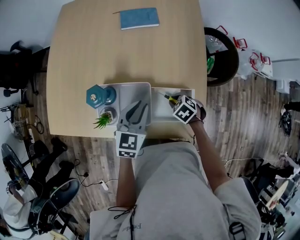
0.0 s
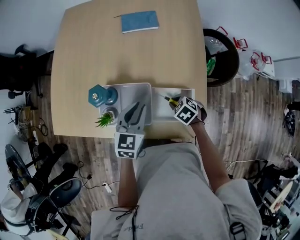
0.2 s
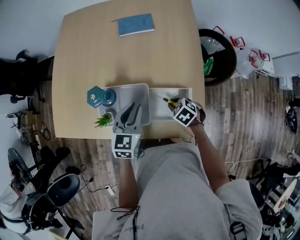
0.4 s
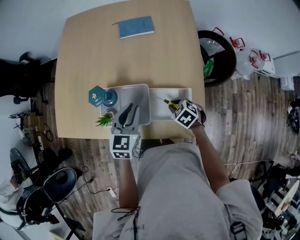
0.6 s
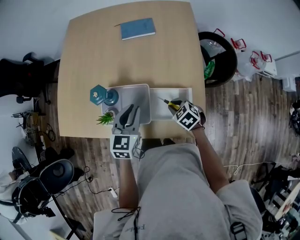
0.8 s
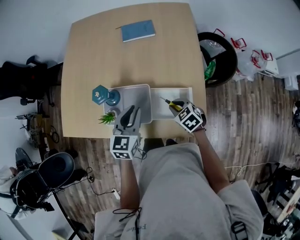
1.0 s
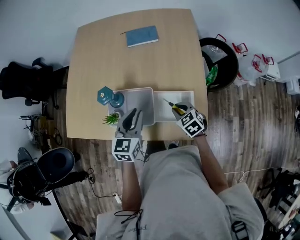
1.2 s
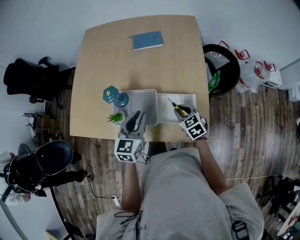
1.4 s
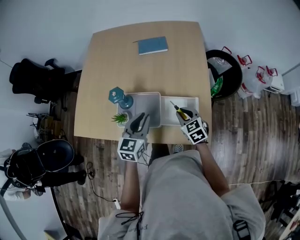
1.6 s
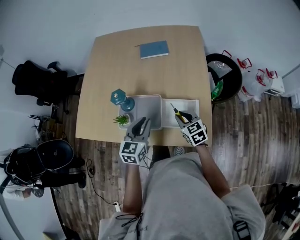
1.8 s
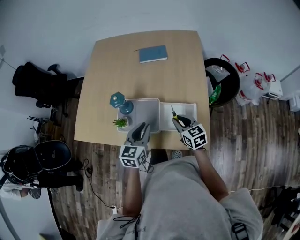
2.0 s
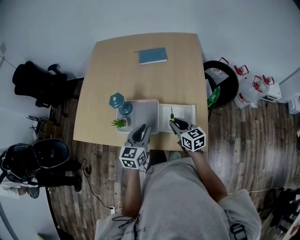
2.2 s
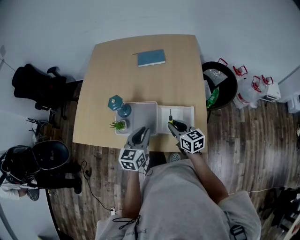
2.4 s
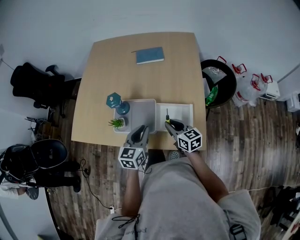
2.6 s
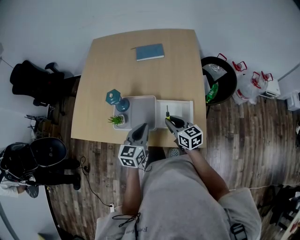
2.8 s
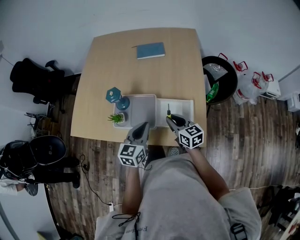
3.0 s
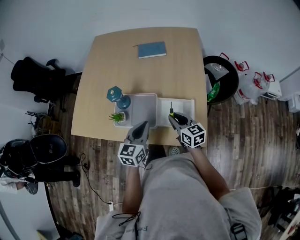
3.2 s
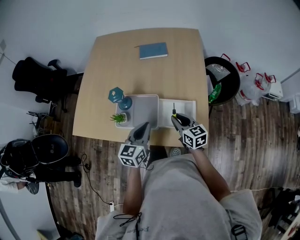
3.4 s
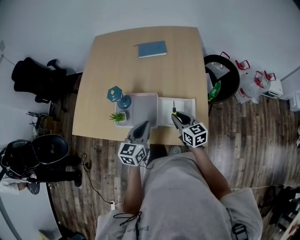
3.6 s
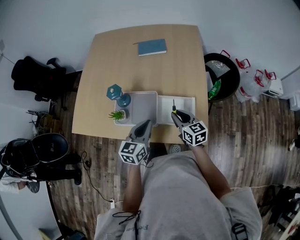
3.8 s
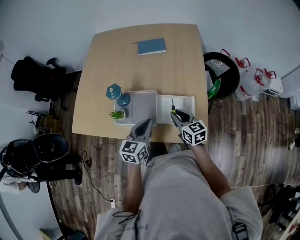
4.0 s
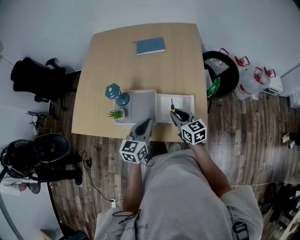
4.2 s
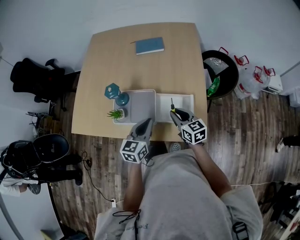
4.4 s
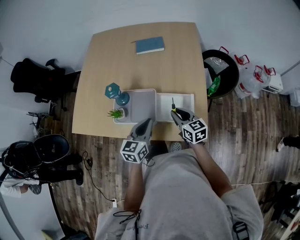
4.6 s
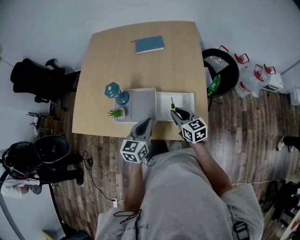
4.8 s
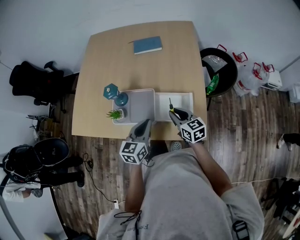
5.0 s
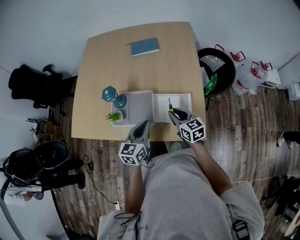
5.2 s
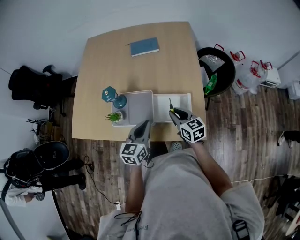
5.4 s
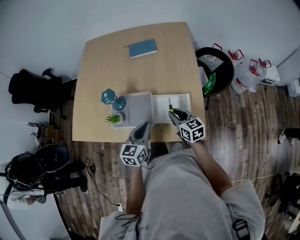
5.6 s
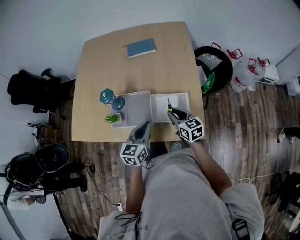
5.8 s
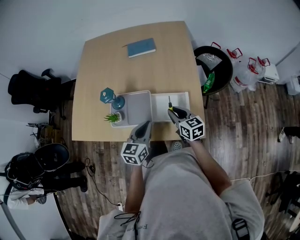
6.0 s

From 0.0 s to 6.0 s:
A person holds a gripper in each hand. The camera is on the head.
From 0.0 s to 1.6 s: The right gripper moves upward, about 10 cm, and tilts its fingers approximately 30 degrees upward. The left gripper travels upward and backward by roughly 10 cm.
From 1.6 s to 3.0 s: The right gripper changes its angle by some 30 degrees.
From 3.0 s to 6.0 s: There are only small adjustments of the grippers.

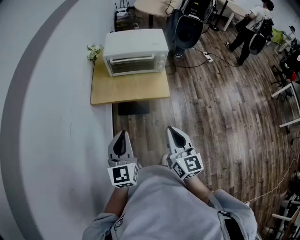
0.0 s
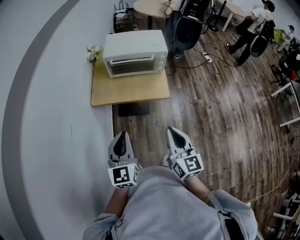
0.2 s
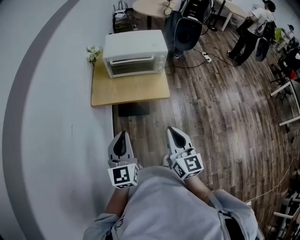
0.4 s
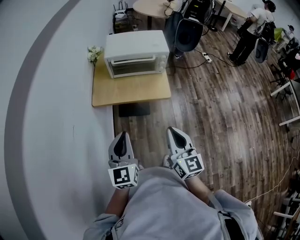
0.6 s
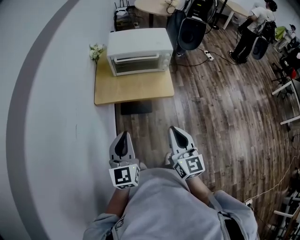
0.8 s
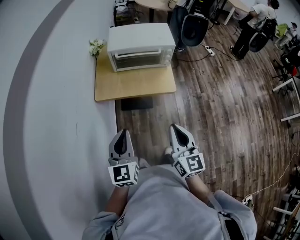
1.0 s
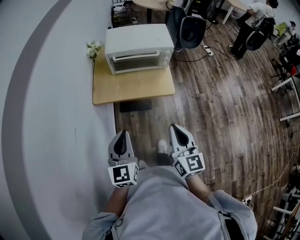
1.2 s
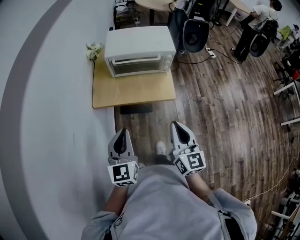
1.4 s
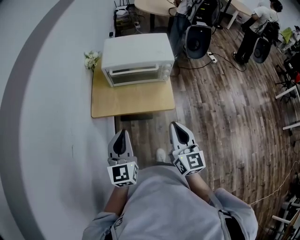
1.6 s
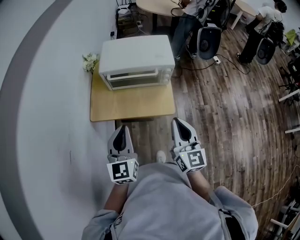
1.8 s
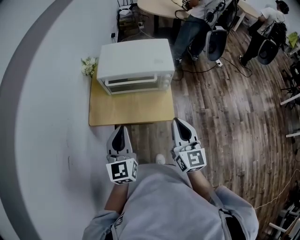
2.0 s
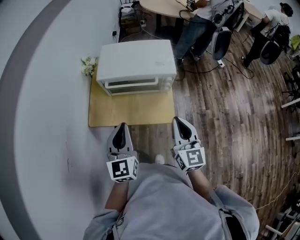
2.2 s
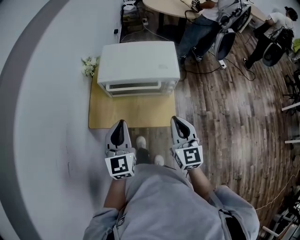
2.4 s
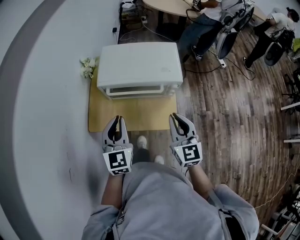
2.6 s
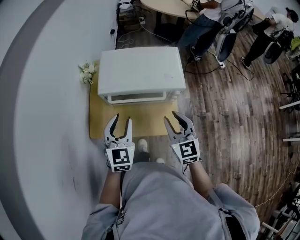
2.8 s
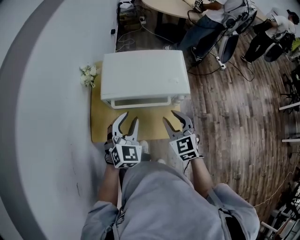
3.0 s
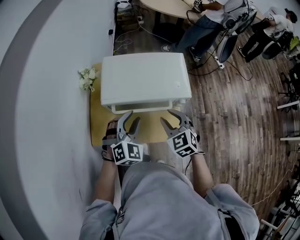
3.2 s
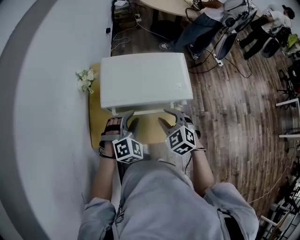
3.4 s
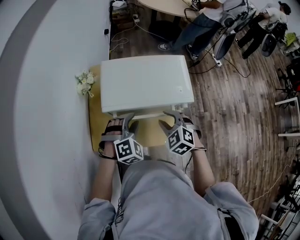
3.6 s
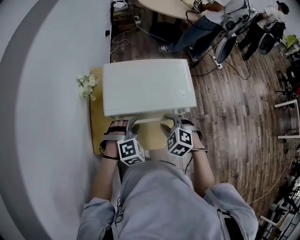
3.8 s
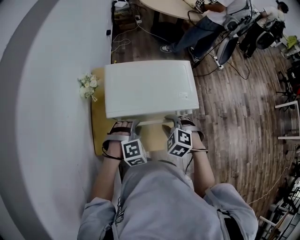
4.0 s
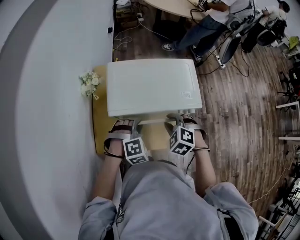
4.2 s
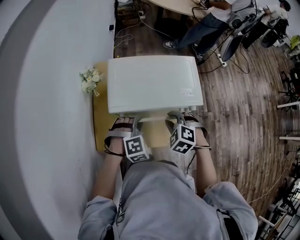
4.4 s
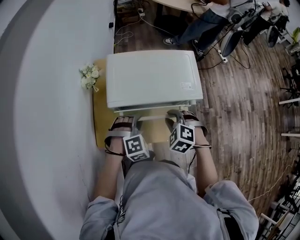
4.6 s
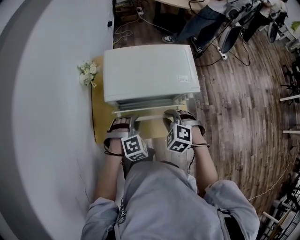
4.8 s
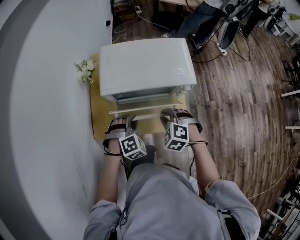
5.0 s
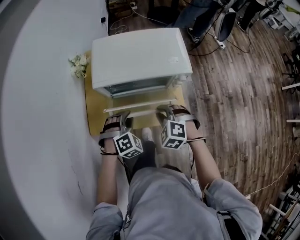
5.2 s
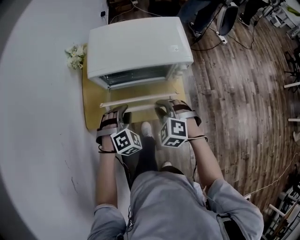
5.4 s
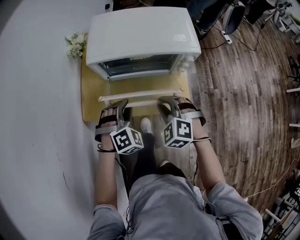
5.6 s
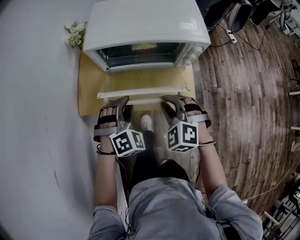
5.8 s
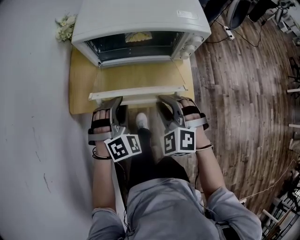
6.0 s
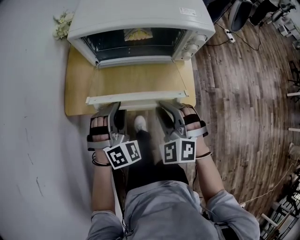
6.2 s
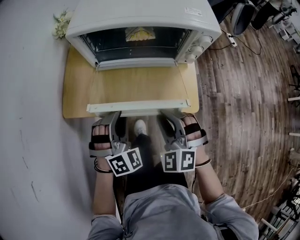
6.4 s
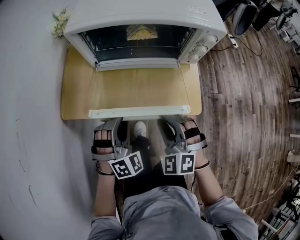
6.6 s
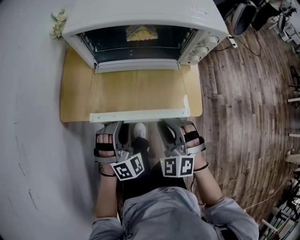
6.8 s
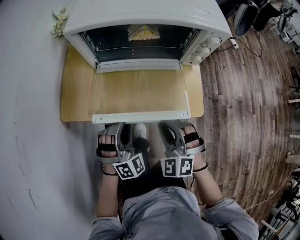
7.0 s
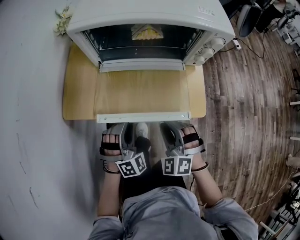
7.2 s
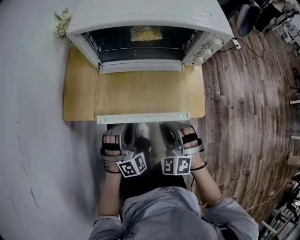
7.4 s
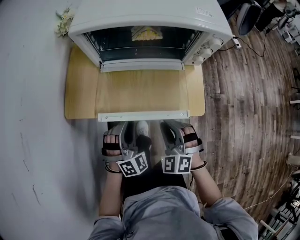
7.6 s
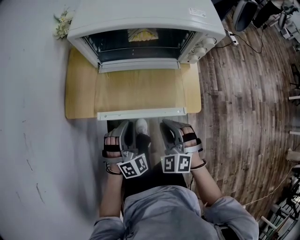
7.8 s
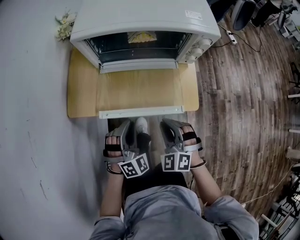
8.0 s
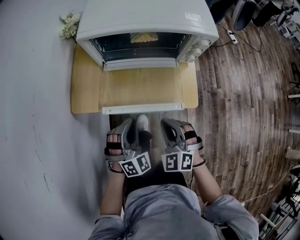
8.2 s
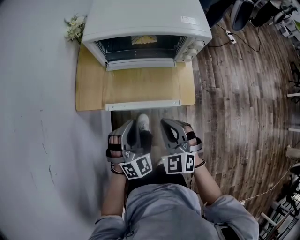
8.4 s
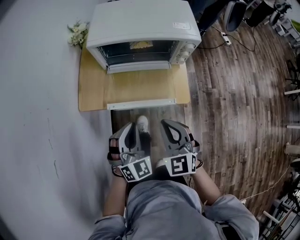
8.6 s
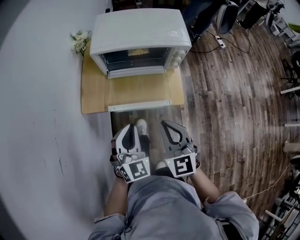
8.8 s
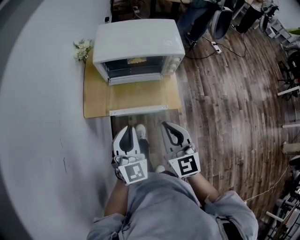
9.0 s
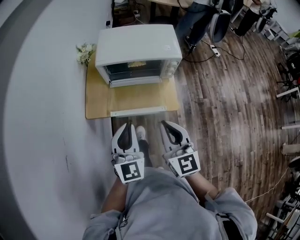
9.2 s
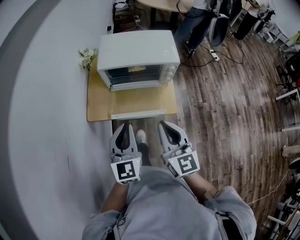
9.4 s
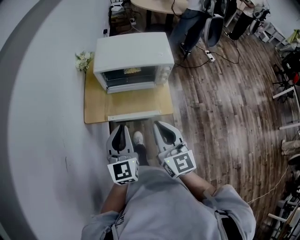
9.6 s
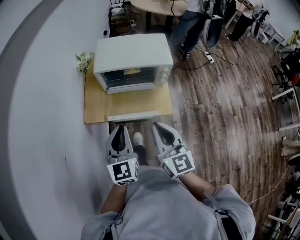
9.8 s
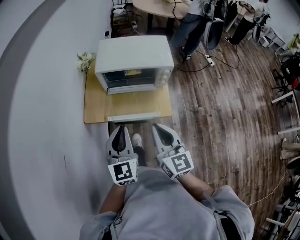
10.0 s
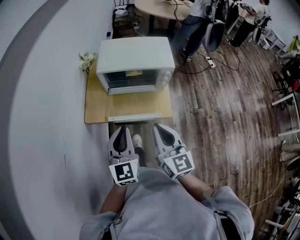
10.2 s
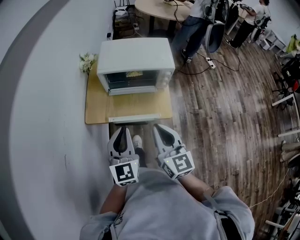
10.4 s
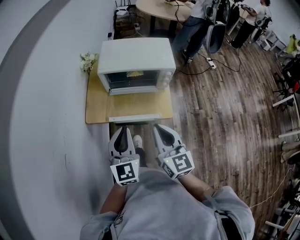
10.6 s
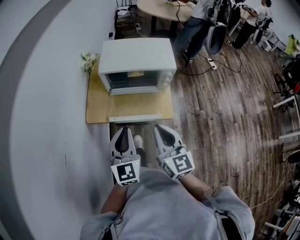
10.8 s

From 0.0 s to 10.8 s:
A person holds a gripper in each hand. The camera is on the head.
From 0.0 s to 1.6 s: Both grippers travel together forward, about 10 cm.
From 1.6 s to 3.0 s: The grippers both shift forward by approximately 25 cm. The right gripper changes its angle by about 40 degrees, and opens up; the left gripper rotates about 40 degrees, and opens its fingers.
From 3.0 s to 4.6 s: Both grippers travel together downward, approximately 10 cm. The left gripper swivels about 50 degrees. Meanwhile the right gripper points its fingers roughly 30 degrees further downward.
From 4.6 s to 6.2 s: Both grippers move backward and downward, roughly 15 cm. The left gripper changes its angle by some 30 degrees. The right gripper swivels roughly 30 degrees.
From 6.2 s to 7.8 s: Both grippers travel together downward, about 10 cm.
From 7.8 s to 9.2 s: The grippers both shift upward by about 30 cm. The right gripper rolls clockwise, seen from behind, by about 50 degrees. The left gripper rolls counterclockwise, seen from behind, by approximately 50 degrees.
From 9.2 s to 10.8 s: The grippers stay close to where they were, moving slightly.

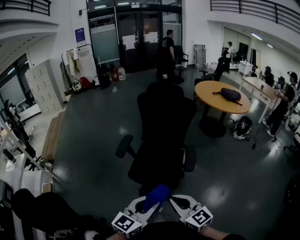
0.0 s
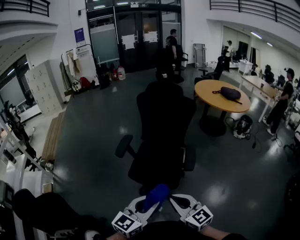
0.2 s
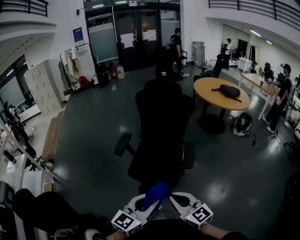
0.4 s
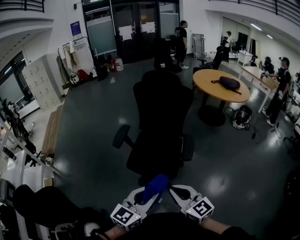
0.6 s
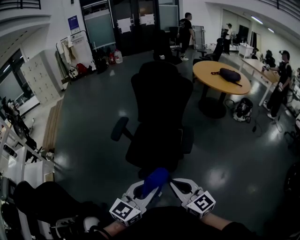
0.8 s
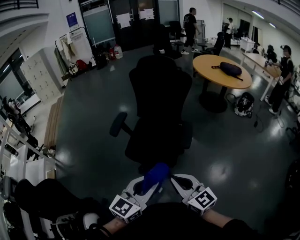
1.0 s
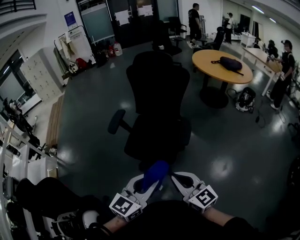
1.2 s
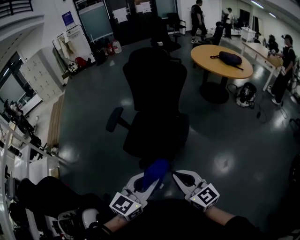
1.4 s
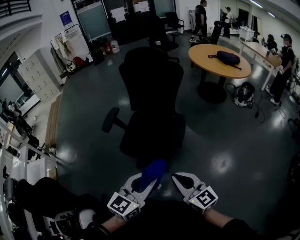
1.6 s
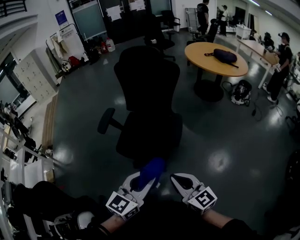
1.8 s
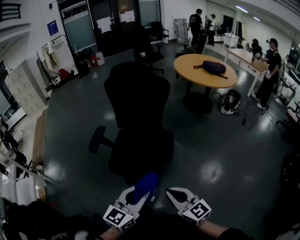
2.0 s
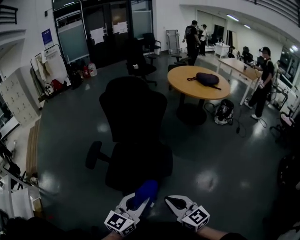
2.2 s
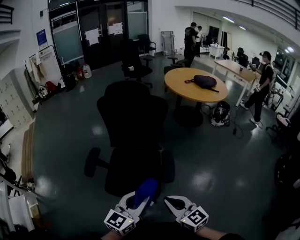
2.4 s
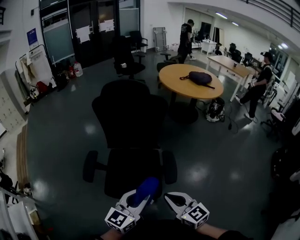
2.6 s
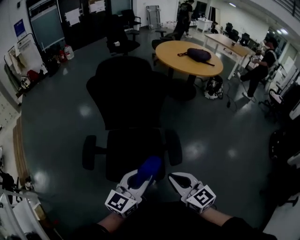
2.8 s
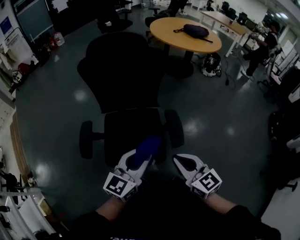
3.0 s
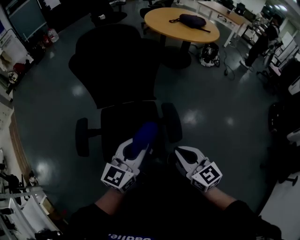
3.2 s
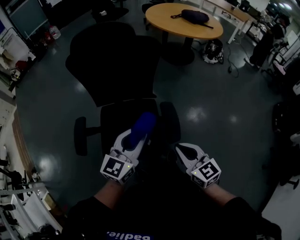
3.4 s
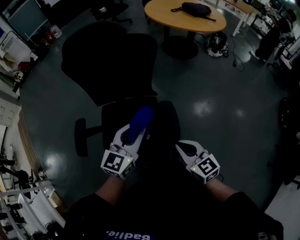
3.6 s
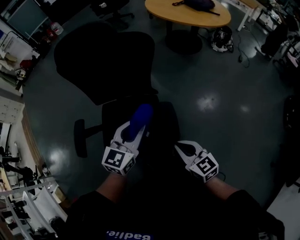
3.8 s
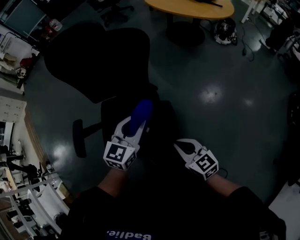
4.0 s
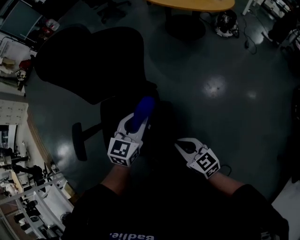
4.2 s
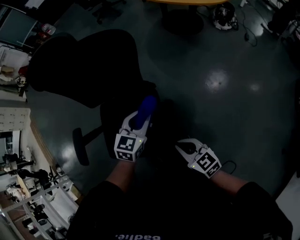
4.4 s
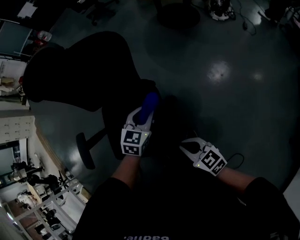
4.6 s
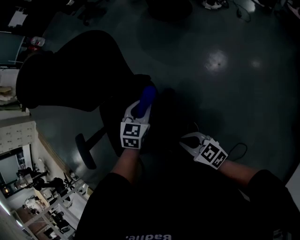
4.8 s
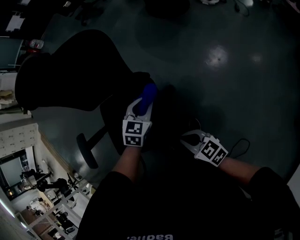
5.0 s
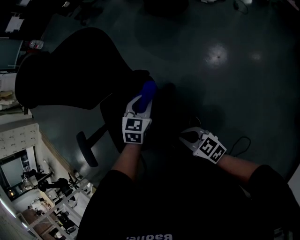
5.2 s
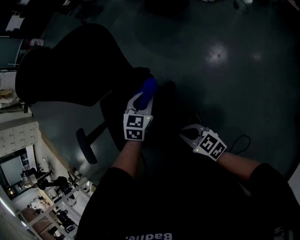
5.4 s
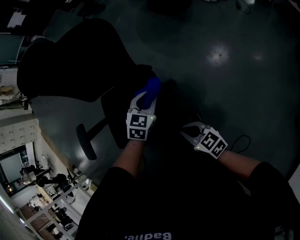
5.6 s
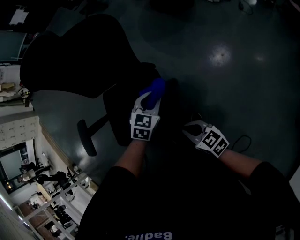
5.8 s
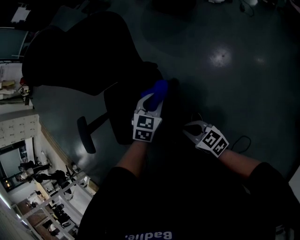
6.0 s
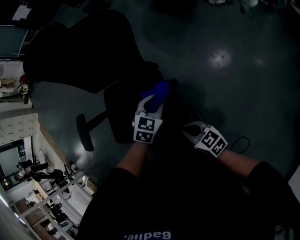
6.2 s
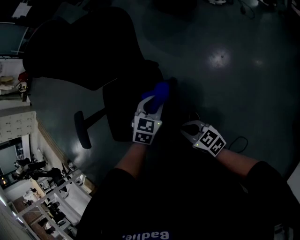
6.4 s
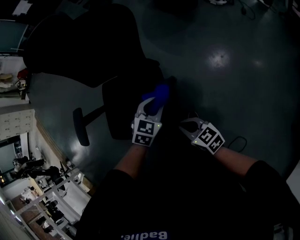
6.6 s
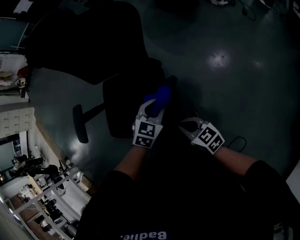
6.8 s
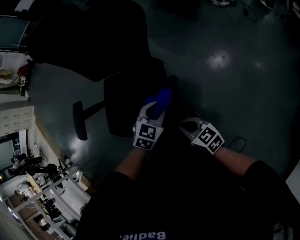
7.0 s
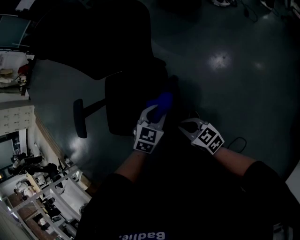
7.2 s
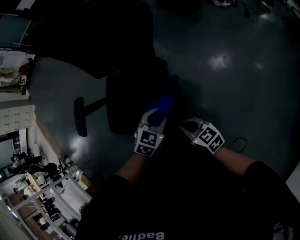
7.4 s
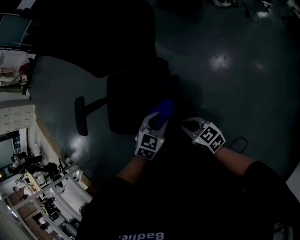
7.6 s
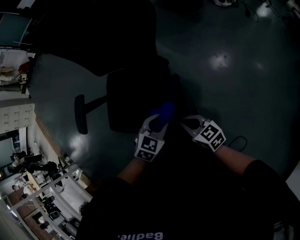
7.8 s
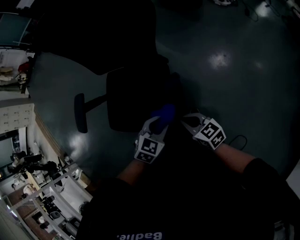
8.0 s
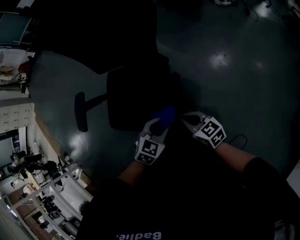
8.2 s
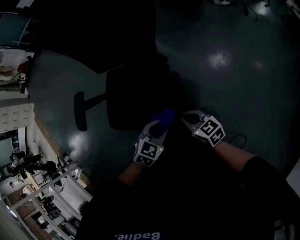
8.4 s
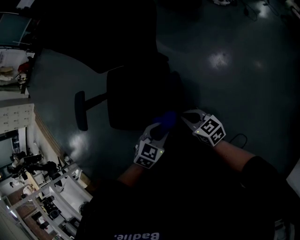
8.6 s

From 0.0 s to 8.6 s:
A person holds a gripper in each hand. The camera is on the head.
From 0.0 s to 1.4 s: Both grippers travel together to the right, some 10 cm.
From 1.4 s to 2.8 s: Both grippers move forward, about 20 cm. The right gripper changes its angle by approximately 20 degrees.
From 2.8 s to 4.4 s: The left gripper moves forward, downward and to the right, roughly 35 cm, and turns by some 30 degrees. Meanwhile the right gripper travels downward, forward and to the right by some 25 cm, and turns by some 20 degrees.
From 4.4 s to 5.8 s: The right gripper moves some 5 cm. Meanwhile the left gripper is displaced downward by some 5 cm.
From 5.8 s to 7.2 s: The right gripper is displaced to the left by some 5 cm; the left gripper shifts some 15 cm backward and to the left.
From 7.2 s to 8.6 s: The left gripper is displaced backward by about 10 cm.
